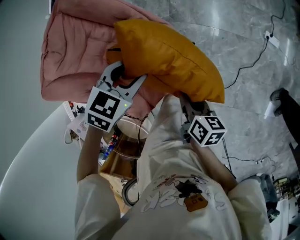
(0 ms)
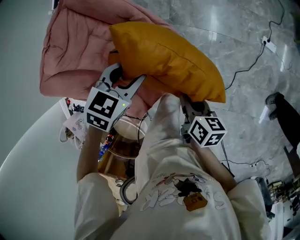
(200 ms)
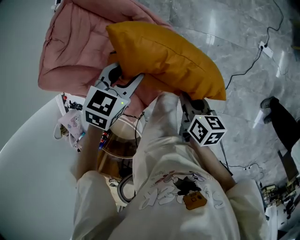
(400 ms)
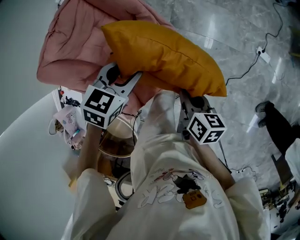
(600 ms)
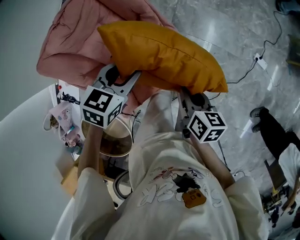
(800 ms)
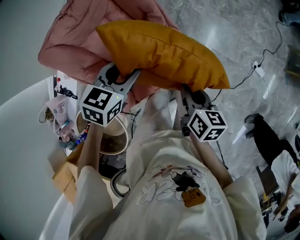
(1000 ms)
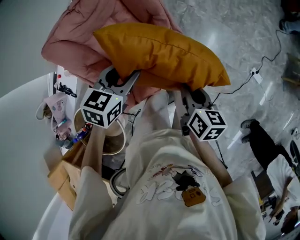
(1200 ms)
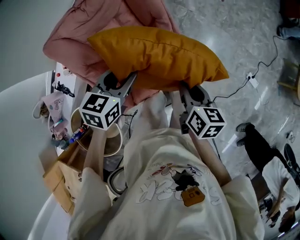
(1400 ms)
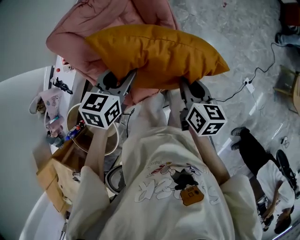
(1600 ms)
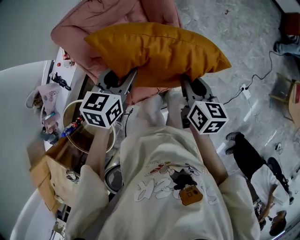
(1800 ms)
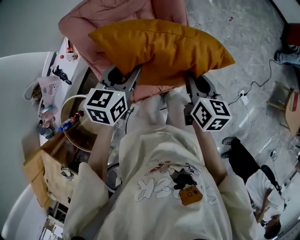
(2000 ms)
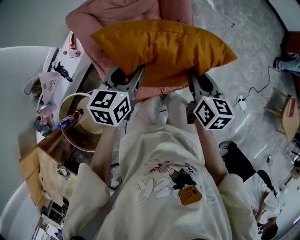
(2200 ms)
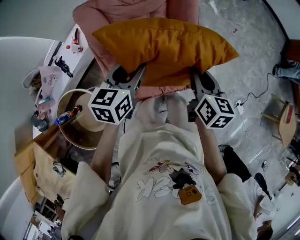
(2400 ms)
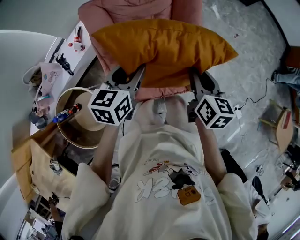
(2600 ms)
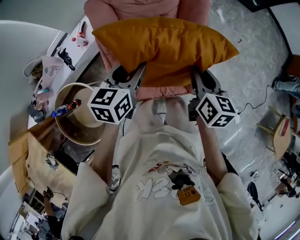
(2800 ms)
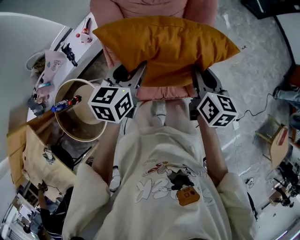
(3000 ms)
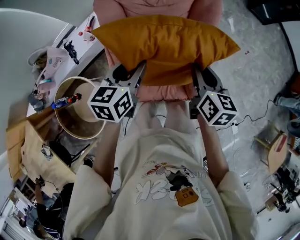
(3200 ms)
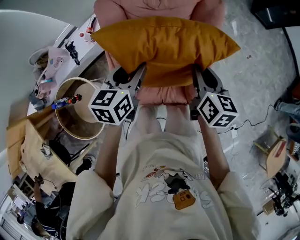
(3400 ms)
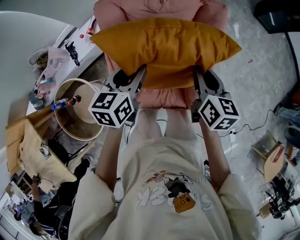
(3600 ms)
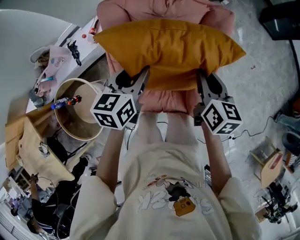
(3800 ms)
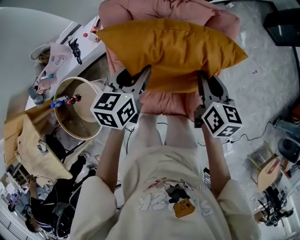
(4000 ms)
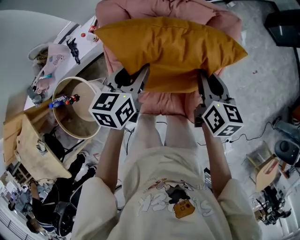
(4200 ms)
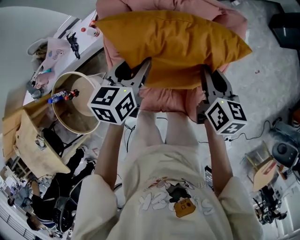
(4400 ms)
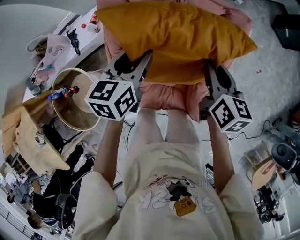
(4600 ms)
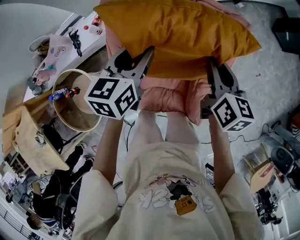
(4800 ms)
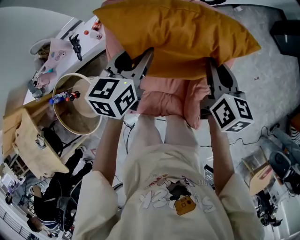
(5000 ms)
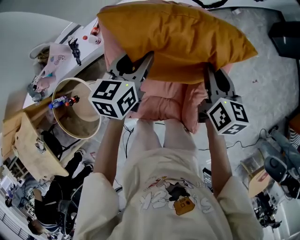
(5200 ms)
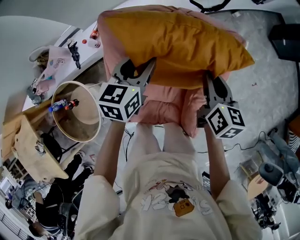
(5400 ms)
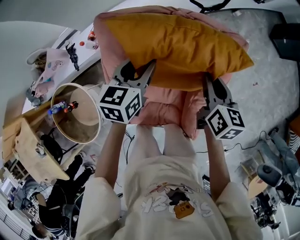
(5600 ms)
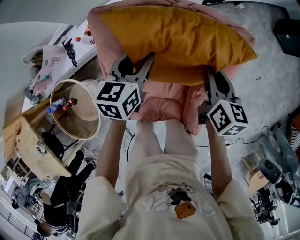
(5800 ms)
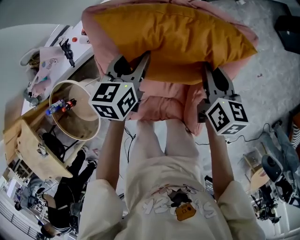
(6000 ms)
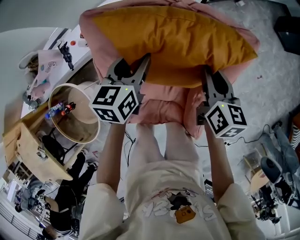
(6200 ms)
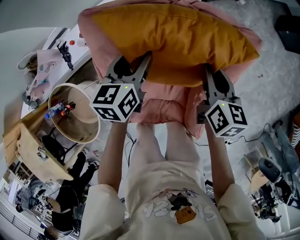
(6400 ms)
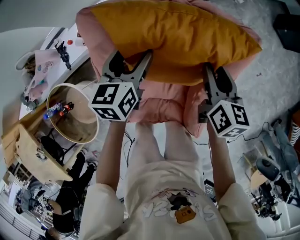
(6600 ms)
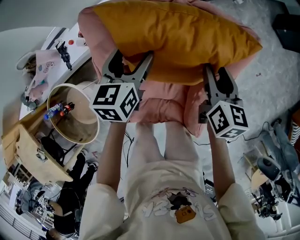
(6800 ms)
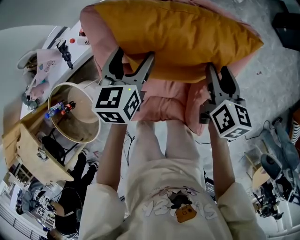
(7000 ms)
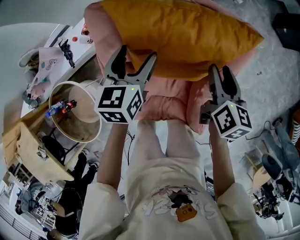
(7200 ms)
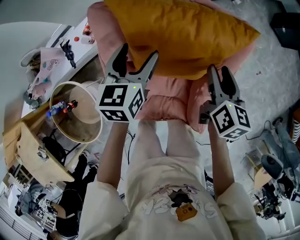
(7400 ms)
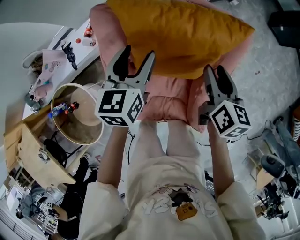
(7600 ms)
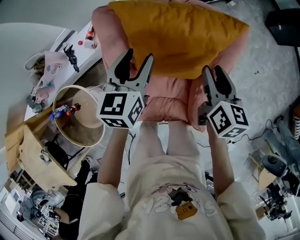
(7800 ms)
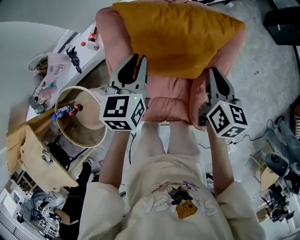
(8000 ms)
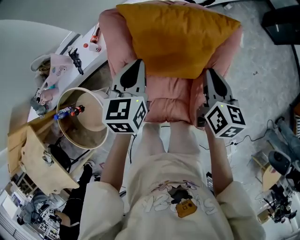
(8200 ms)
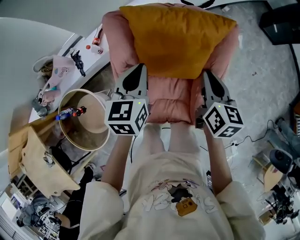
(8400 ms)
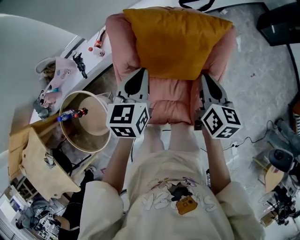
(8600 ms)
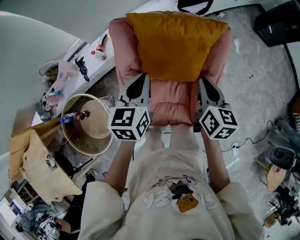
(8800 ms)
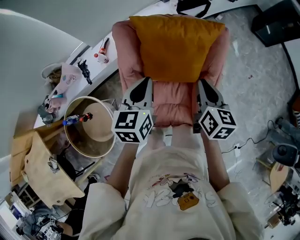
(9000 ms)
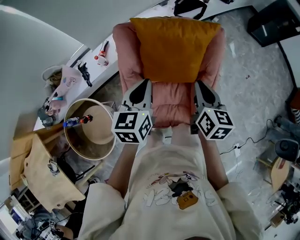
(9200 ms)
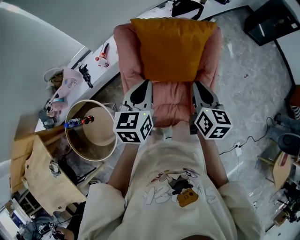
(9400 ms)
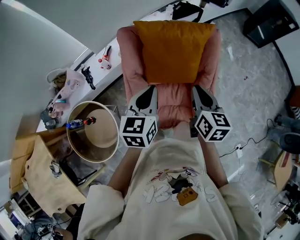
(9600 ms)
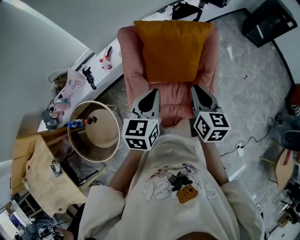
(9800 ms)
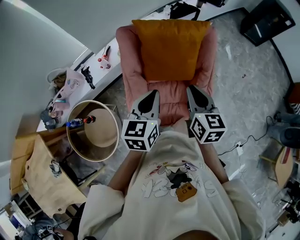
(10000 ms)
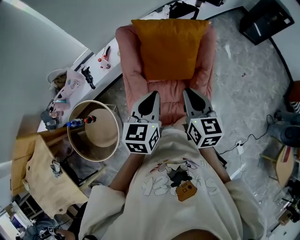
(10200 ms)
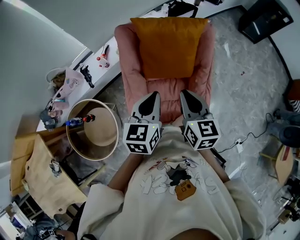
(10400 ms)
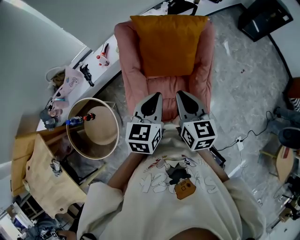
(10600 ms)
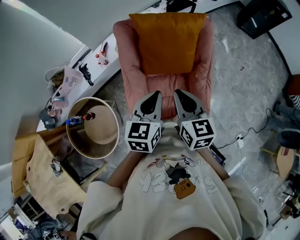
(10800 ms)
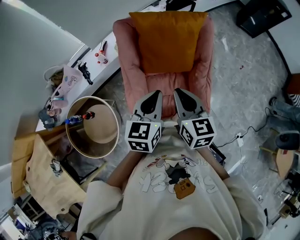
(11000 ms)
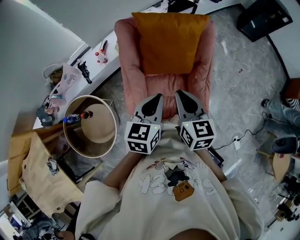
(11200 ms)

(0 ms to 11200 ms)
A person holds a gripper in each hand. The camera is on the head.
0 ms - 1600 ms: The right gripper shifts some 15 cm upward and to the left, and changes its angle by about 30 degrees. The left gripper shifts some 20 cm to the left, backward and upward, and turns by approximately 50 degrees.
1600 ms - 3200 ms: The left gripper shifts approximately 15 cm to the left, and changes its angle by about 30 degrees. The right gripper is displaced to the left and forward by approximately 15 cm, and swivels some 20 degrees.
3200 ms - 4800 ms: The grippers both shift forward by roughly 15 cm.
4800 ms - 6400 ms: The grippers both shift downward and forward by approximately 15 cm.
6400 ms - 8000 ms: The right gripper heads backward and upward, covering approximately 10 cm; the left gripper travels upward and backward by some 15 cm.
8000 ms - 9600 ms: The two grippers go roughly 20 cm backward and upward.
9600 ms - 11200 ms: The right gripper moves backward and to the left, some 10 cm. Meanwhile the left gripper goes about 10 cm backward.

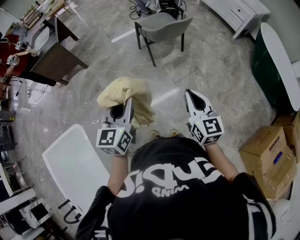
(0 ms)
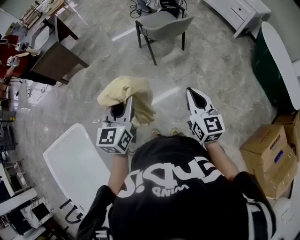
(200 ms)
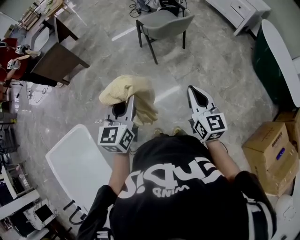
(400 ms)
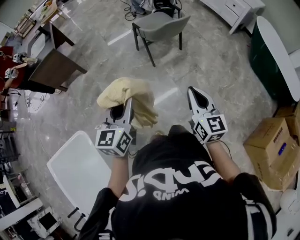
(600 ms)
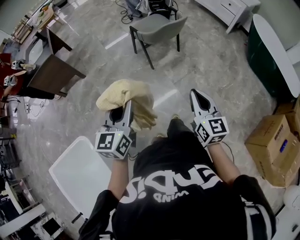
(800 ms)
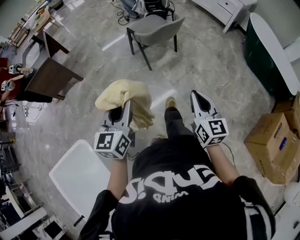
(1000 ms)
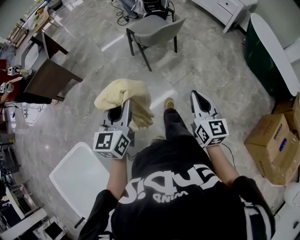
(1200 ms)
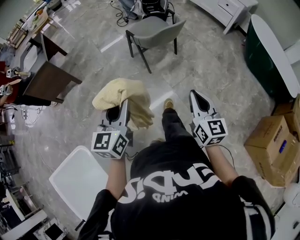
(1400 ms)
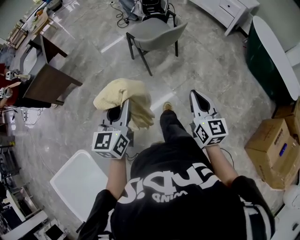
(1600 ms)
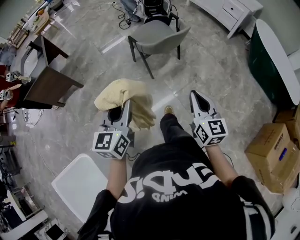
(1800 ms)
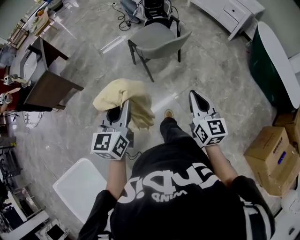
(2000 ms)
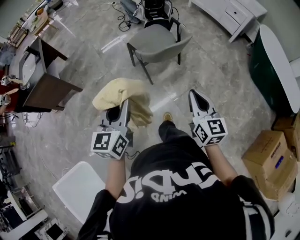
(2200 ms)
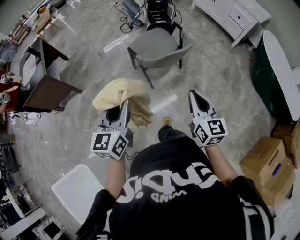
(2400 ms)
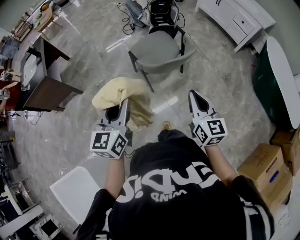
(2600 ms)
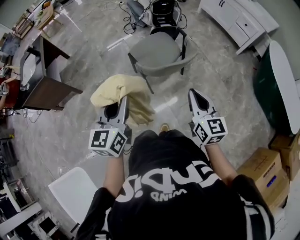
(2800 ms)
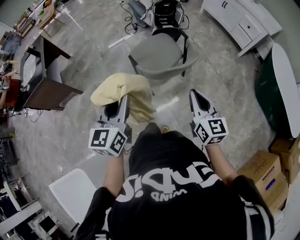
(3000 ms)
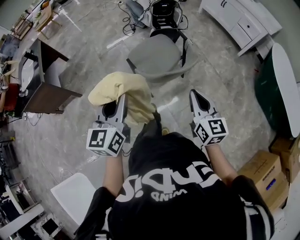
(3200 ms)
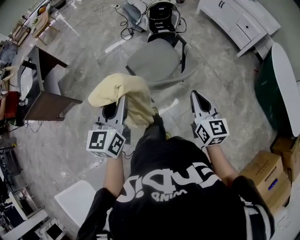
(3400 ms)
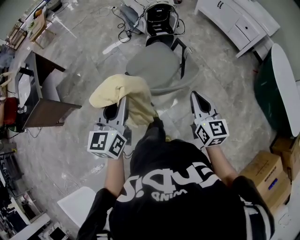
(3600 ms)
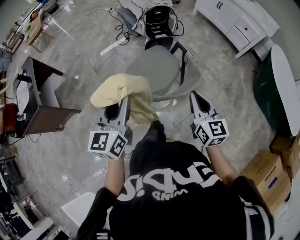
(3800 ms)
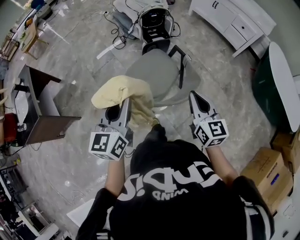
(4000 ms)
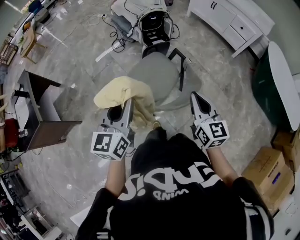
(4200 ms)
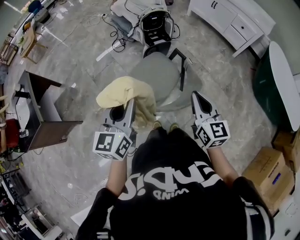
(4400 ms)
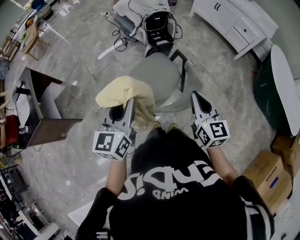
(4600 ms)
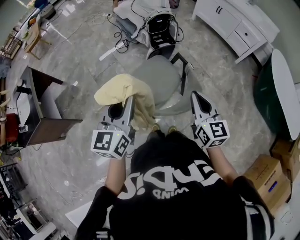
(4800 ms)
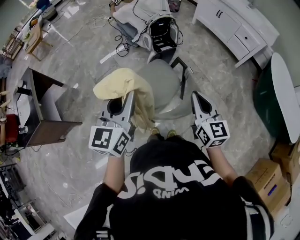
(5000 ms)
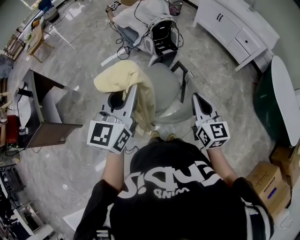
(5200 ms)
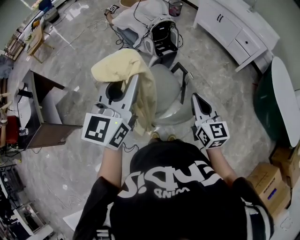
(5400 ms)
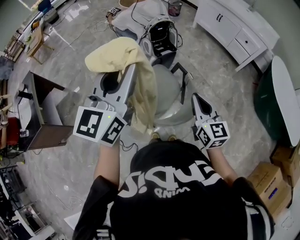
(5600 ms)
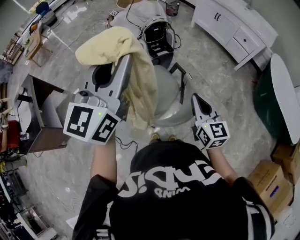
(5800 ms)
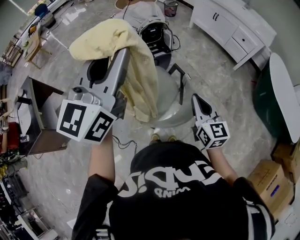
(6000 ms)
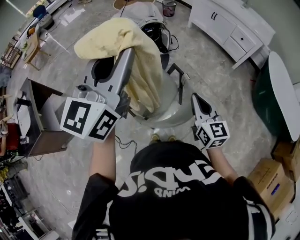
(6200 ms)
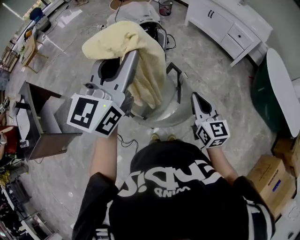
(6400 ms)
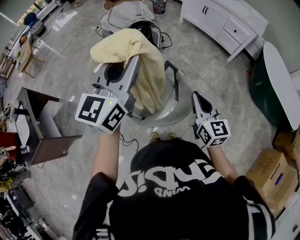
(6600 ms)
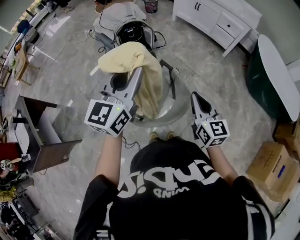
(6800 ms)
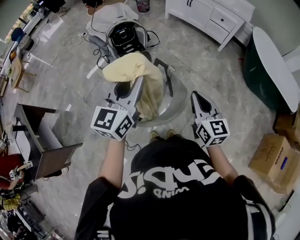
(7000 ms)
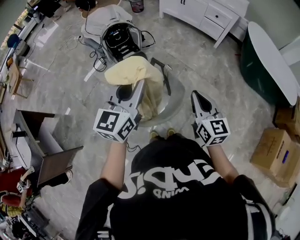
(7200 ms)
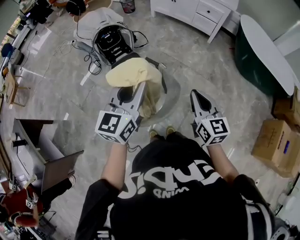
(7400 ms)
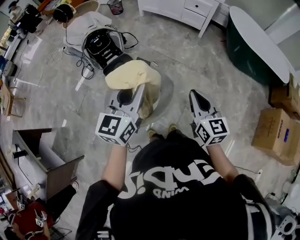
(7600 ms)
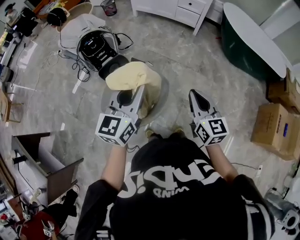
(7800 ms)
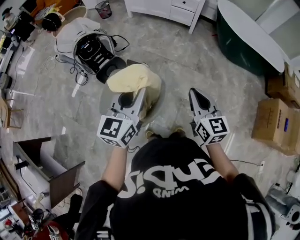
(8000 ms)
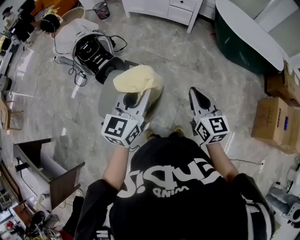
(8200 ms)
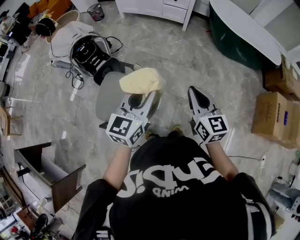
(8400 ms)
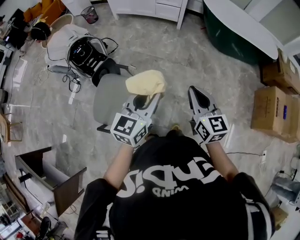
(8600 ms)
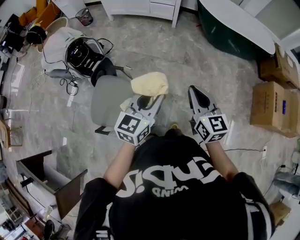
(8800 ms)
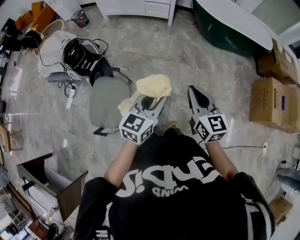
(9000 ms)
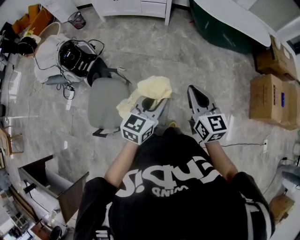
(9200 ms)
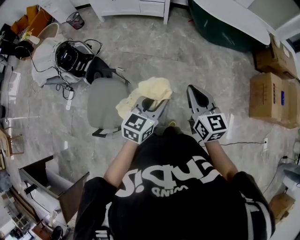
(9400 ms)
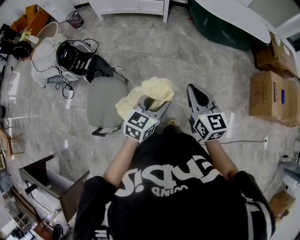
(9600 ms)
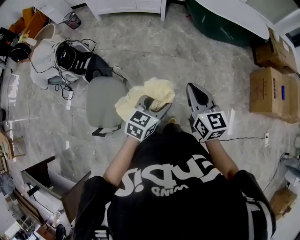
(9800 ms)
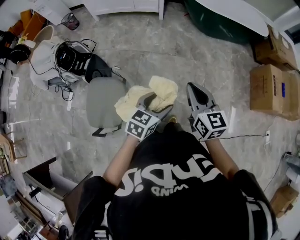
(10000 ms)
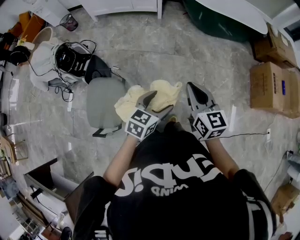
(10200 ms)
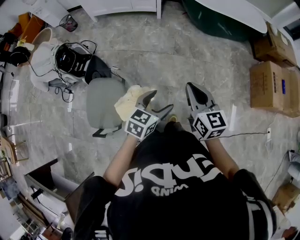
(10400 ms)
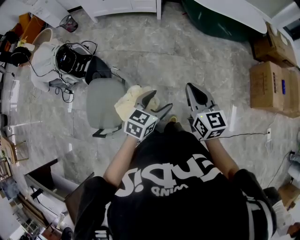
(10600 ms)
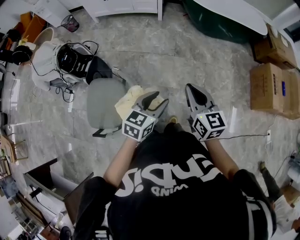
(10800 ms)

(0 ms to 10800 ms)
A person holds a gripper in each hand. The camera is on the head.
0 ms - 1600 ms: The two grippers go about 10 cm forward.
1600 ms - 3000 ms: Both grippers travel together forward, about 30 cm.
3000 ms - 4600 ms: Both grippers travel together forward, approximately 25 cm.
4600 ms - 6200 ms: The left gripper moves upward and forward, some 25 cm, and swivels roughly 30 degrees. Meanwhile the right gripper goes roughly 5 cm forward.
6200 ms - 7800 ms: The left gripper heads downward and to the right, covering approximately 25 cm, and changes its angle by roughly 30 degrees; the right gripper travels to the right by about 10 cm, and rotates about 20 degrees.
7800 ms - 9200 ms: The left gripper moves to the right and downward, about 25 cm, and changes its angle by roughly 30 degrees. The right gripper shifts about 10 cm to the right.
9200 ms - 10800 ms: The left gripper moves about 5 cm, and opens, then closes again.

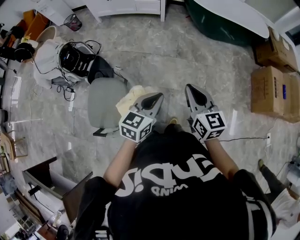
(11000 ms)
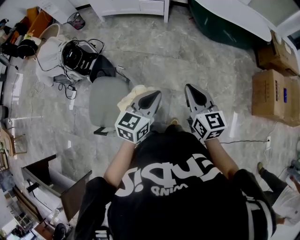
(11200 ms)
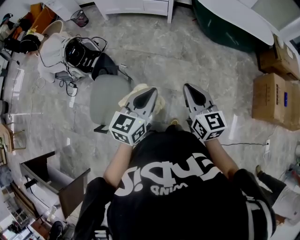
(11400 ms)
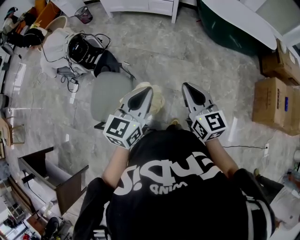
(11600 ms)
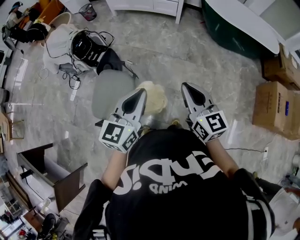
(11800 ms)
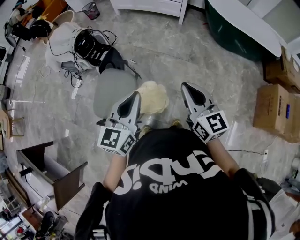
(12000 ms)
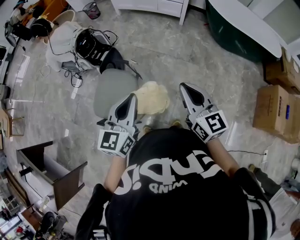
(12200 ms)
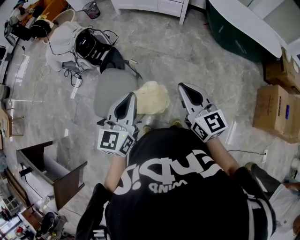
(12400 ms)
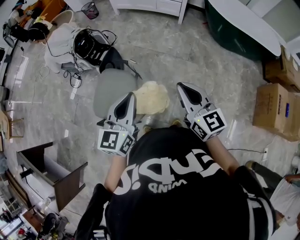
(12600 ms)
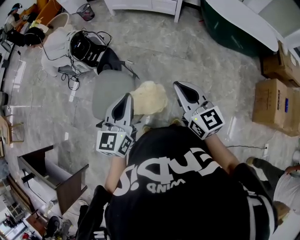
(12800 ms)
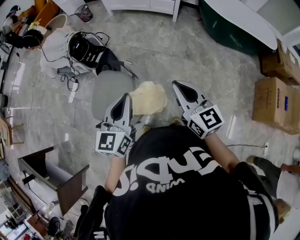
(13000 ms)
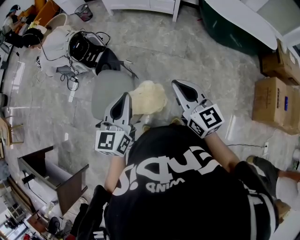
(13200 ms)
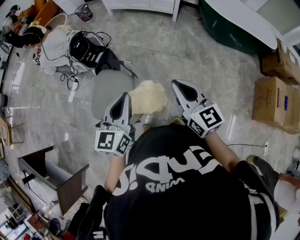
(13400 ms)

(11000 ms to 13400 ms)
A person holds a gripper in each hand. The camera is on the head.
11000 ms - 12200 ms: The left gripper moves to the left and upward, roughly 20 cm, and turns by roughly 30 degrees, while the right gripper is displaced to the left by approximately 10 cm.
12200 ms - 13400 ms: There are only small adjustments of the grippers.
